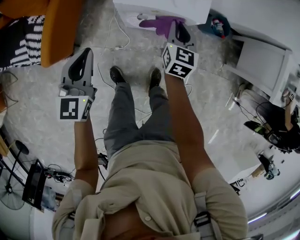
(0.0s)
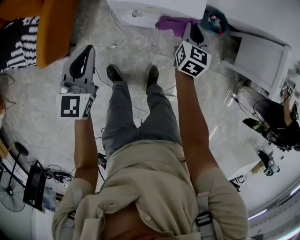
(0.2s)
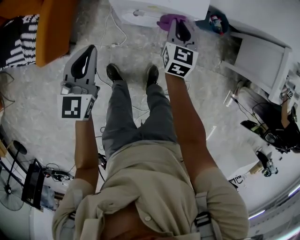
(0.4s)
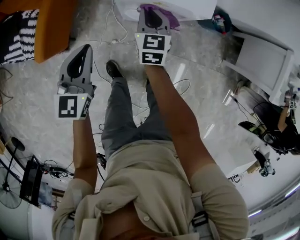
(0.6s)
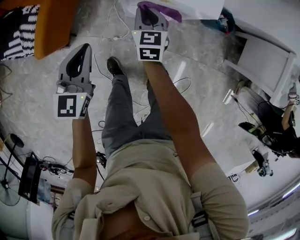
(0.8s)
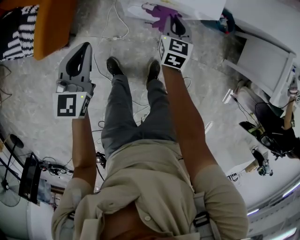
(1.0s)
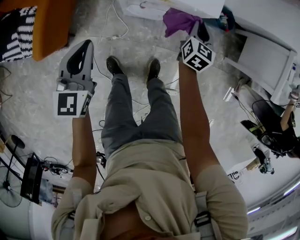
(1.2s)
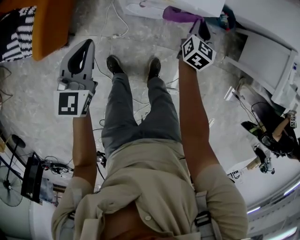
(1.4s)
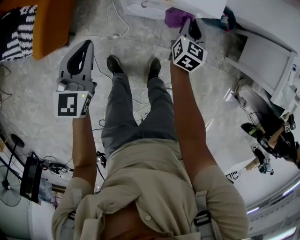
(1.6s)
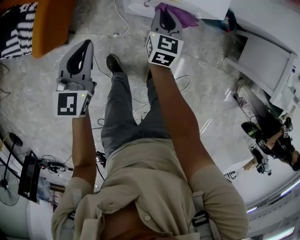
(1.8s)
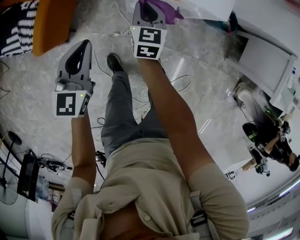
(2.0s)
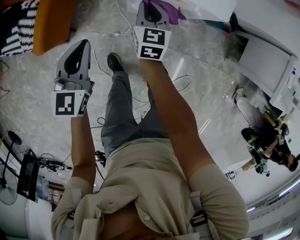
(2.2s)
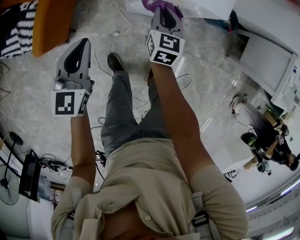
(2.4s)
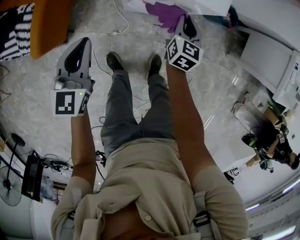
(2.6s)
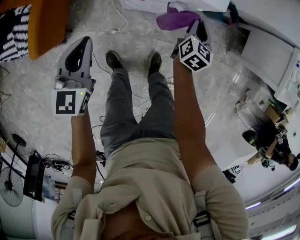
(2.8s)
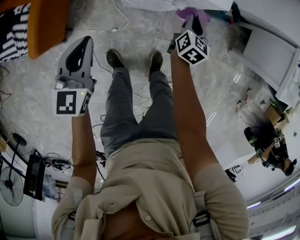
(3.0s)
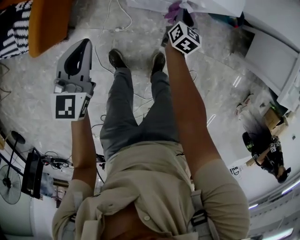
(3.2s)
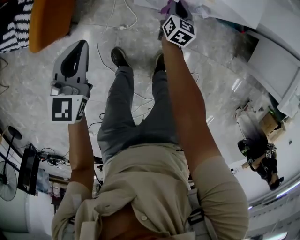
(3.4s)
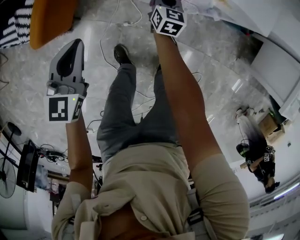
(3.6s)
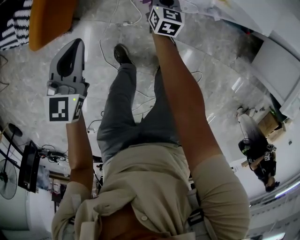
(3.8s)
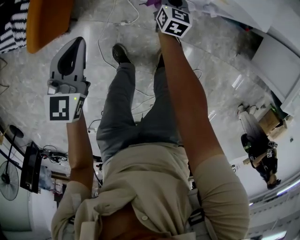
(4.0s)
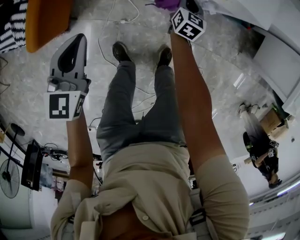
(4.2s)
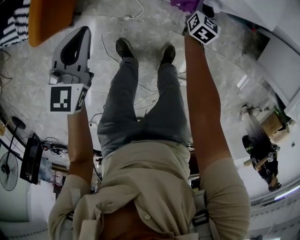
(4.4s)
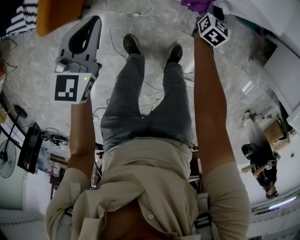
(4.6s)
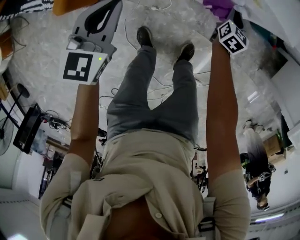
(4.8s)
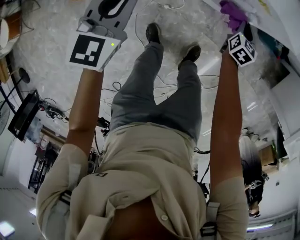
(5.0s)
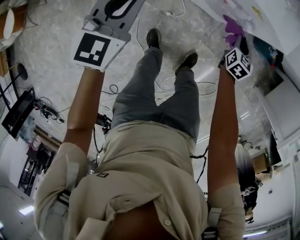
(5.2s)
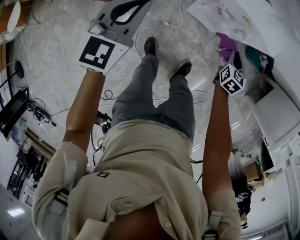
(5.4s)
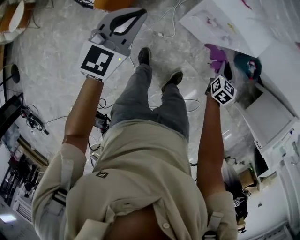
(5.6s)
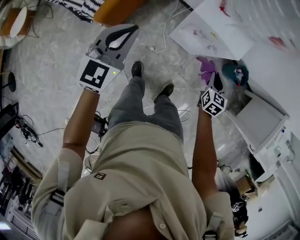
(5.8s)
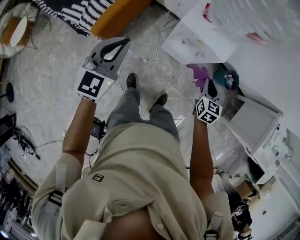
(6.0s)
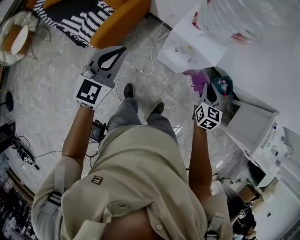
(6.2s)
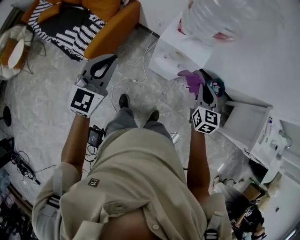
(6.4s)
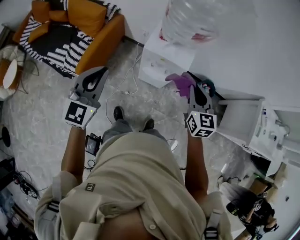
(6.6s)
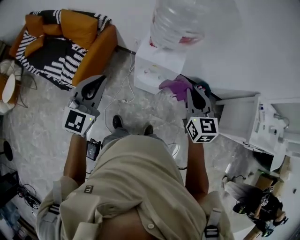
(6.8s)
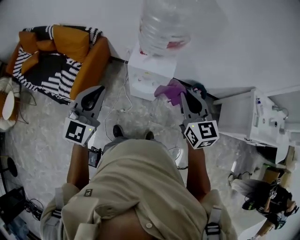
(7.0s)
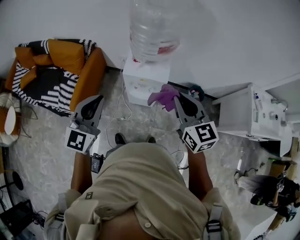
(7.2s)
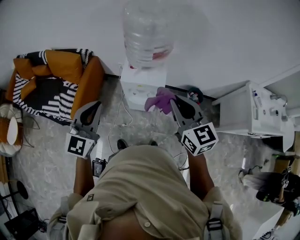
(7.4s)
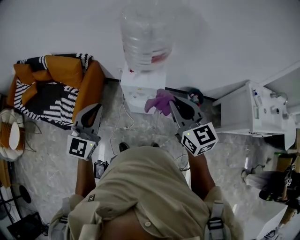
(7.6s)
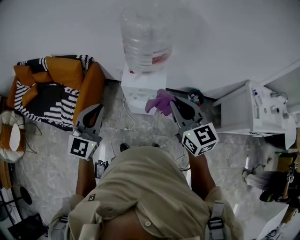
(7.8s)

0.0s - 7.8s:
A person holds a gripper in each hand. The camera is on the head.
0.0s - 1.6s: The right gripper swings left and right, some 25 cm each way, with 3 reversals.
1.6s - 3.2s: The right gripper moves left and right over approximately 25 cm, changing direction 2 times.
3.2s - 4.6s: The right gripper is displaced downward by roughly 5 cm, and goes to the left and returns, roughly 20 cm each way.
4.6s - 6.2s: Both grippers travel together upward, about 35 cm. The right gripper changes its angle by some 30 degrees.
6.2s - 7.8s: The right gripper moves upward, about 30 cm. Meanwhile the left gripper travels upward and to the right by approximately 15 cm.

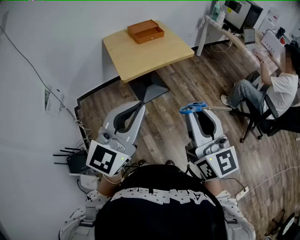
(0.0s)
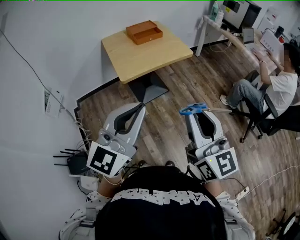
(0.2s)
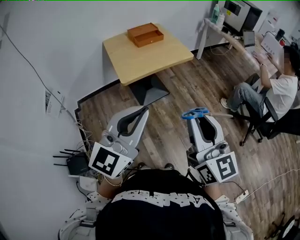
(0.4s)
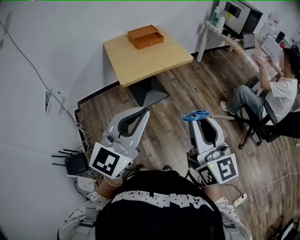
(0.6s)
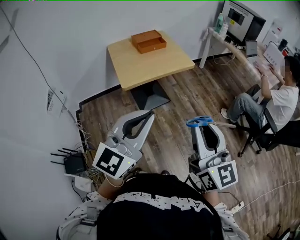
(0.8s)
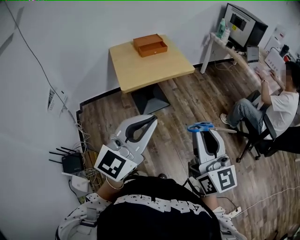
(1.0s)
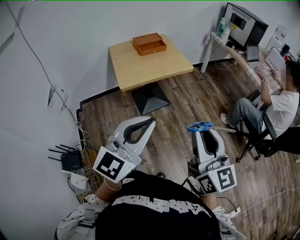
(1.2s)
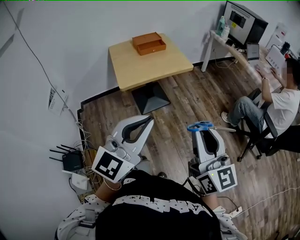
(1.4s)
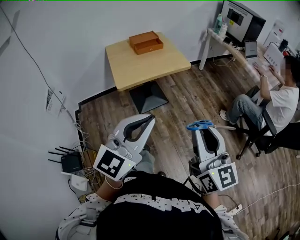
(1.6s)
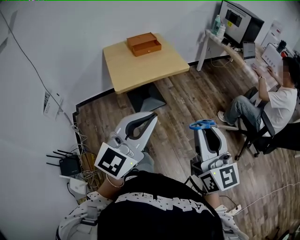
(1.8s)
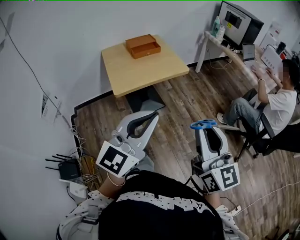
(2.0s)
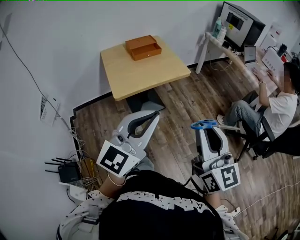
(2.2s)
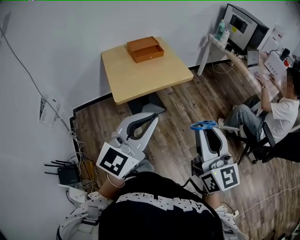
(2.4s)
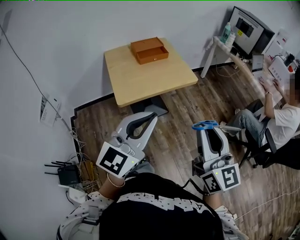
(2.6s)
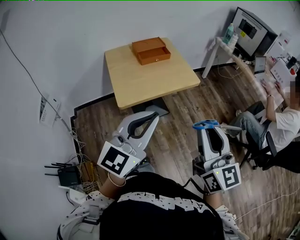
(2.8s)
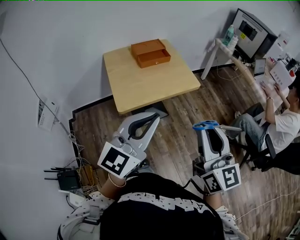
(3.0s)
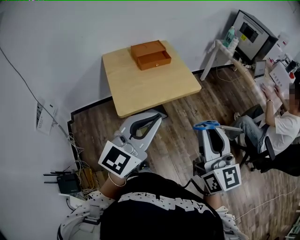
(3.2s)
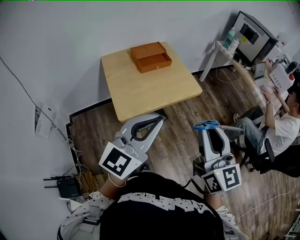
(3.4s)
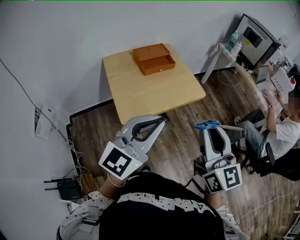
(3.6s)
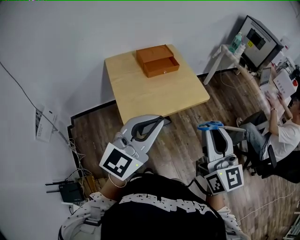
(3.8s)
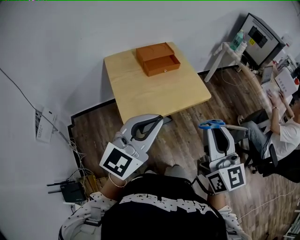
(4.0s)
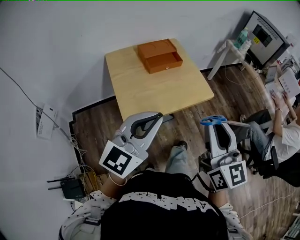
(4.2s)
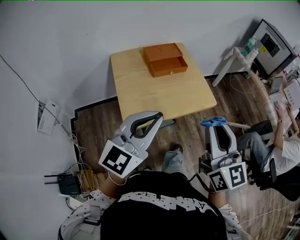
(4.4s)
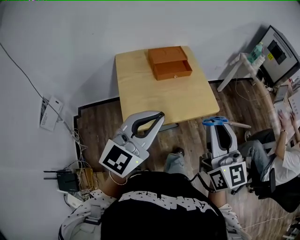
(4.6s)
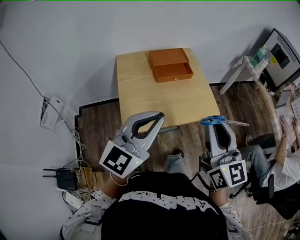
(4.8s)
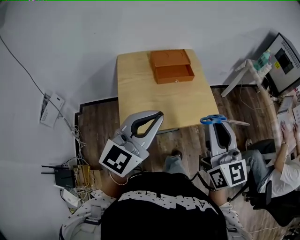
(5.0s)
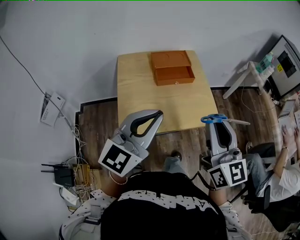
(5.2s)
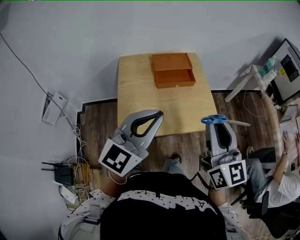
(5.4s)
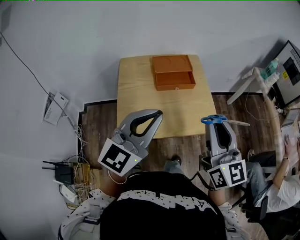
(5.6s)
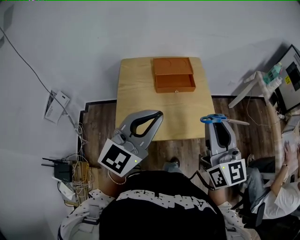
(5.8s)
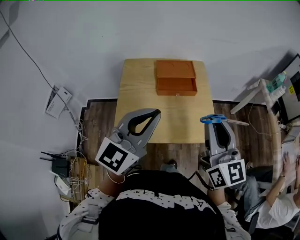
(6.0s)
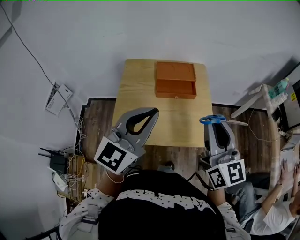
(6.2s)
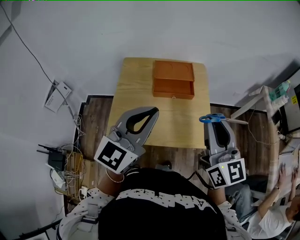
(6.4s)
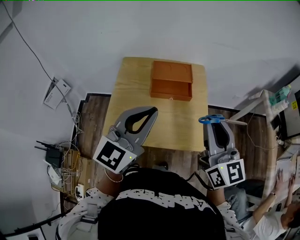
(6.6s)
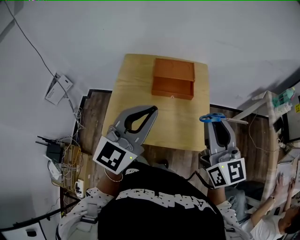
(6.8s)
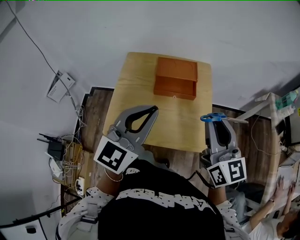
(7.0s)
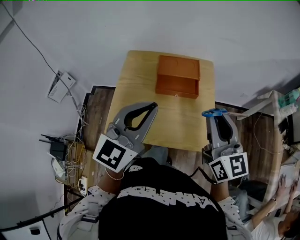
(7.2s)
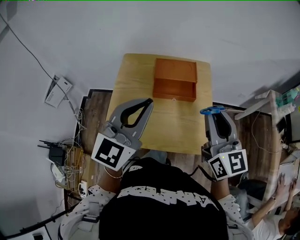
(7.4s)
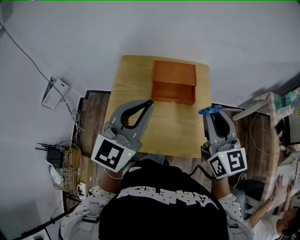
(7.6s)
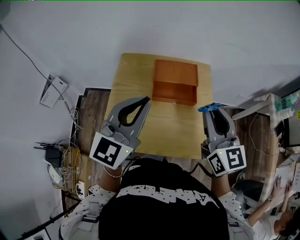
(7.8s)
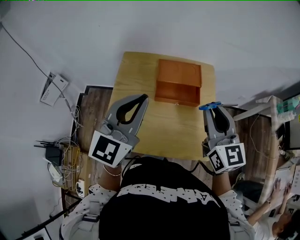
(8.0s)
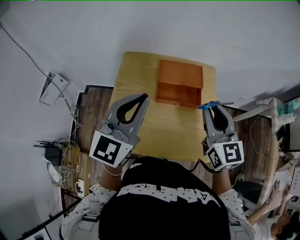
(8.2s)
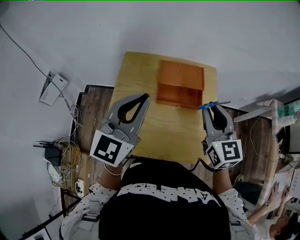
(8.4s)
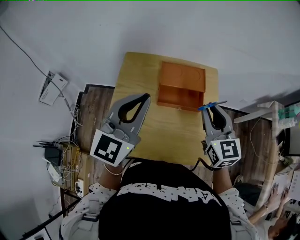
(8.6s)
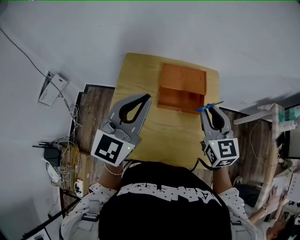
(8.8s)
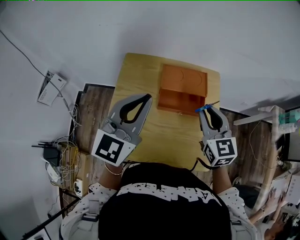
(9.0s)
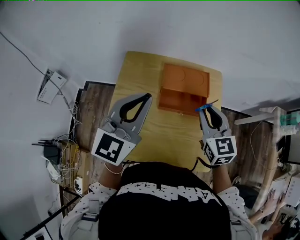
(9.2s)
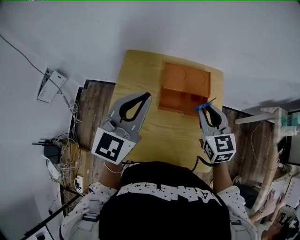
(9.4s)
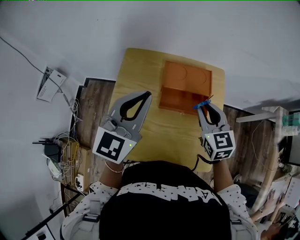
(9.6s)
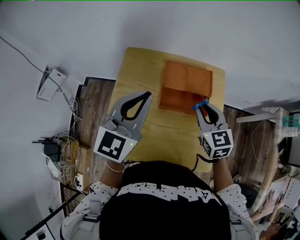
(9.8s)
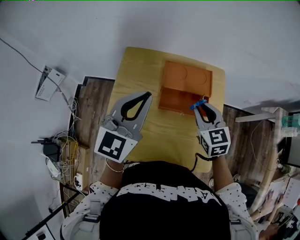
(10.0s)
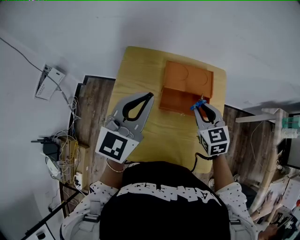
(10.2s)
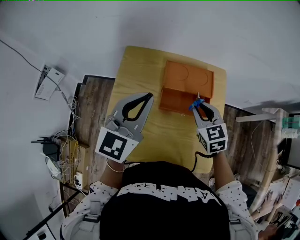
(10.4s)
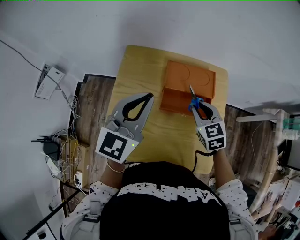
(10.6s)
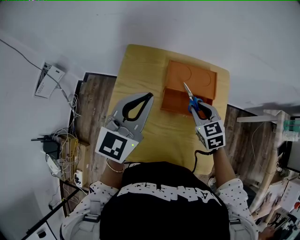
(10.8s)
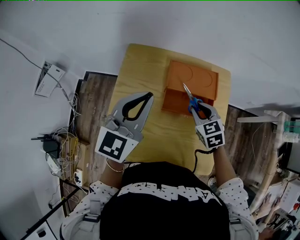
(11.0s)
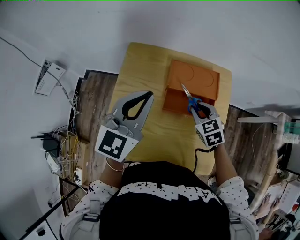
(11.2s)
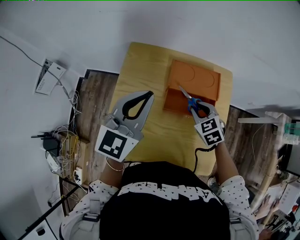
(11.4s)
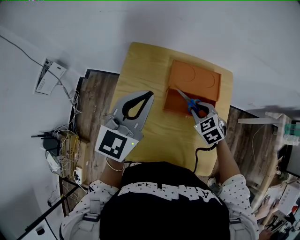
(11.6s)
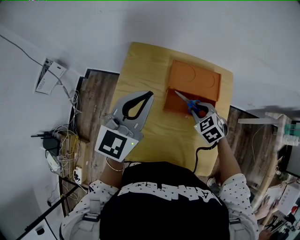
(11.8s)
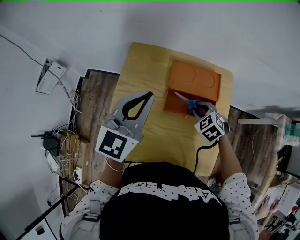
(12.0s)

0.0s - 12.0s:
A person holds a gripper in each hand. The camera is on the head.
0.0s - 1.6s: The grippers both shift to the right by about 10 cm.
1.6s - 3.0s: The two grippers go some 20 cm forward and to the left.
3.0s - 4.4s: The grippers both shift forward and to the left by approximately 15 cm.
4.4s - 6.0s: The left gripper is displaced forward and to the right by about 15 cm; the right gripper shifts some 20 cm forward.
6.0s - 7.6s: The two grippers go approximately 10 cm forward.
7.6s - 9.0s: The right gripper heads forward and downward, covering roughly 15 cm; the left gripper travels forward and to the left by approximately 10 cm.
9.0s - 10.4s: The right gripper moves downward, some 10 cm. Meanwhile the left gripper ends up about 5 cm from where it was.
10.4s - 12.0s: The right gripper goes about 10 cm downward, and rotates approximately 30 degrees.

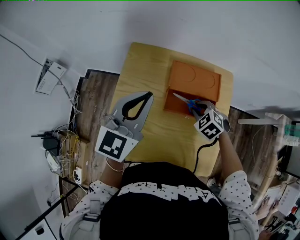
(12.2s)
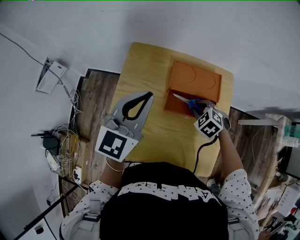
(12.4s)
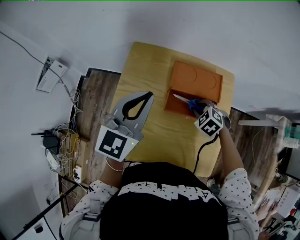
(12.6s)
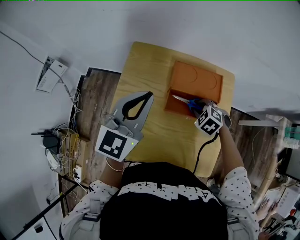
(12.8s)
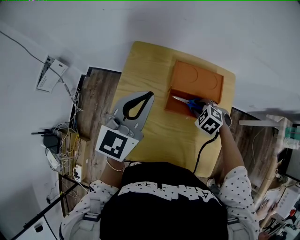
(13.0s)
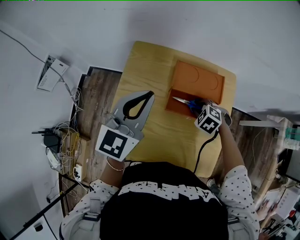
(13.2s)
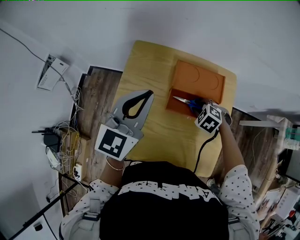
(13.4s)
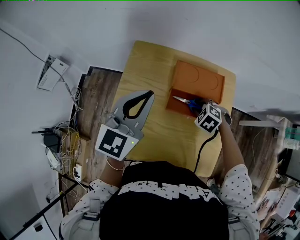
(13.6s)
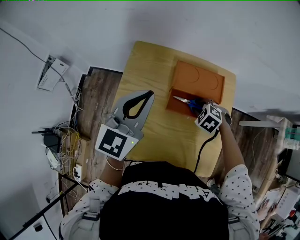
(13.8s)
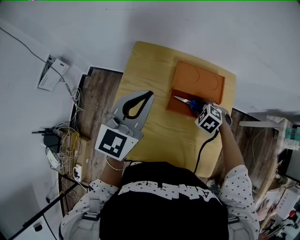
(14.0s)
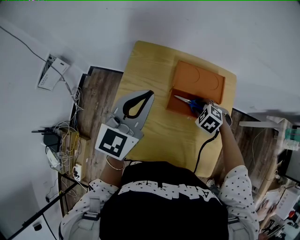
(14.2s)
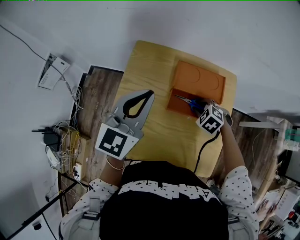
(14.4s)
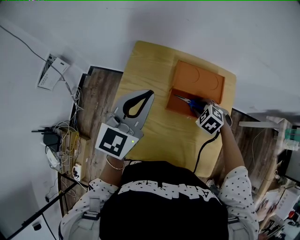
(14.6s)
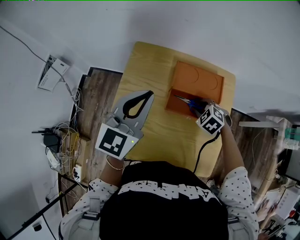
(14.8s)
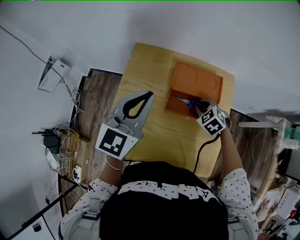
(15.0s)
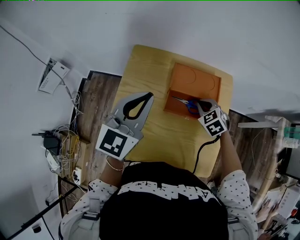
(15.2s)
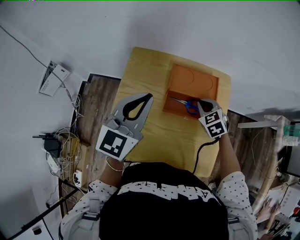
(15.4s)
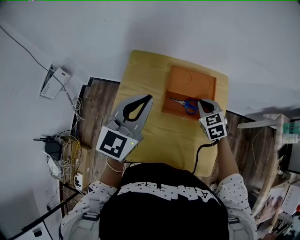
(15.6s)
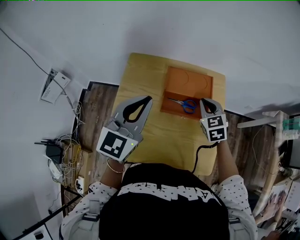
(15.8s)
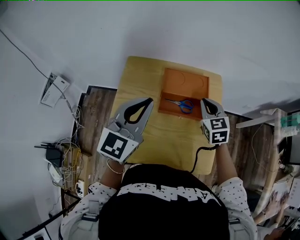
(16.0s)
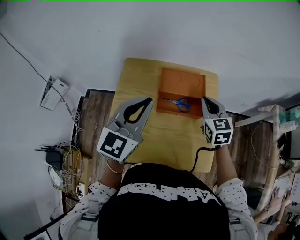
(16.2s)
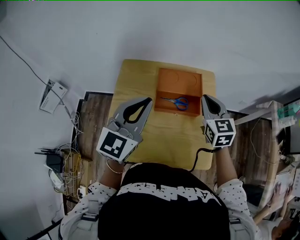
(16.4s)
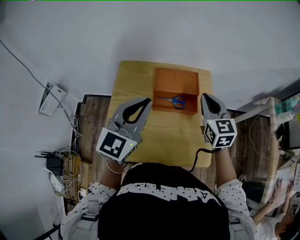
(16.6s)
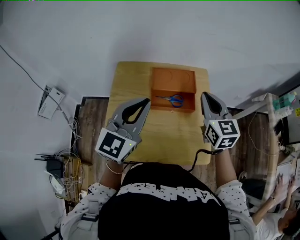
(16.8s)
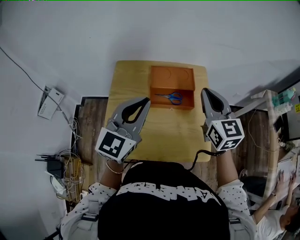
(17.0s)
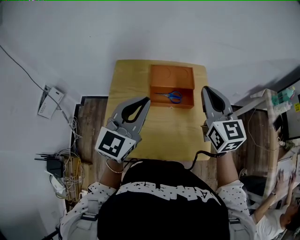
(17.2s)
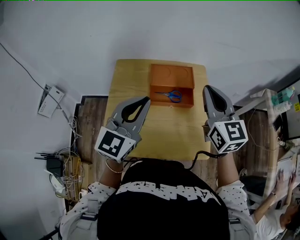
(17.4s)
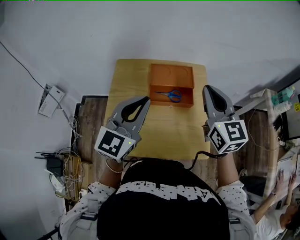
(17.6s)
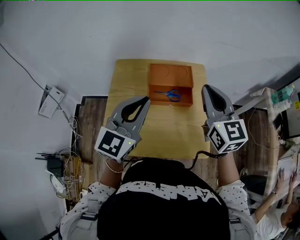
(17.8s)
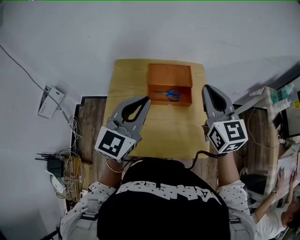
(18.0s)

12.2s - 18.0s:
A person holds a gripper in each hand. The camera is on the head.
12.2s - 15.0s: The grippers move only a little.
15.0s - 16.6s: The left gripper shifts about 10 cm backward, to the right and upward, while the right gripper shifts roughly 20 cm upward, and angles its fingers upward, by roughly 40 degrees.
16.6s - 18.0s: The right gripper shifts some 10 cm upward and backward.
